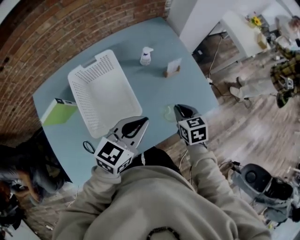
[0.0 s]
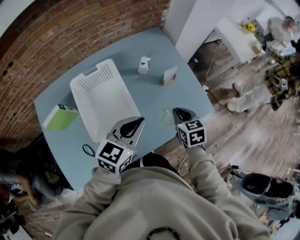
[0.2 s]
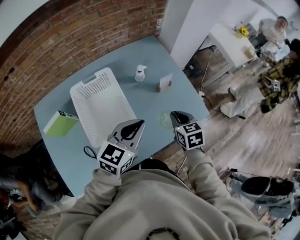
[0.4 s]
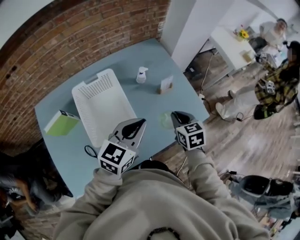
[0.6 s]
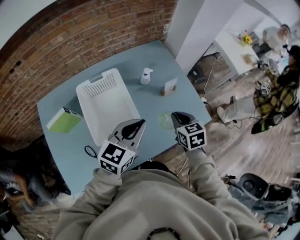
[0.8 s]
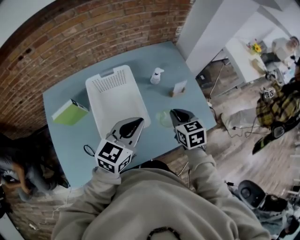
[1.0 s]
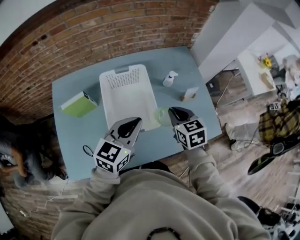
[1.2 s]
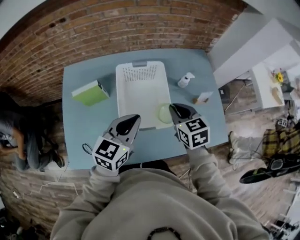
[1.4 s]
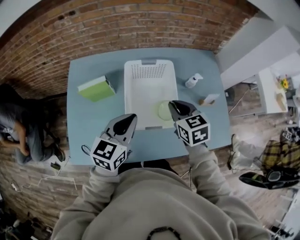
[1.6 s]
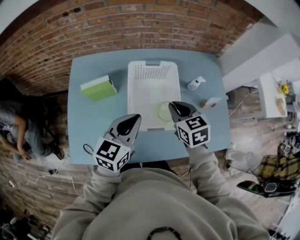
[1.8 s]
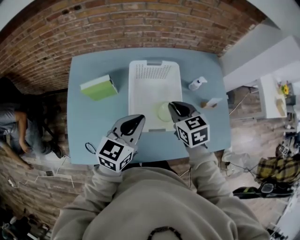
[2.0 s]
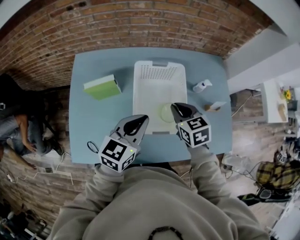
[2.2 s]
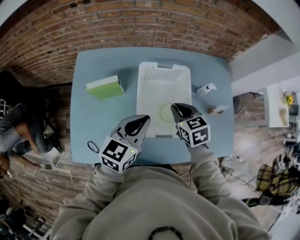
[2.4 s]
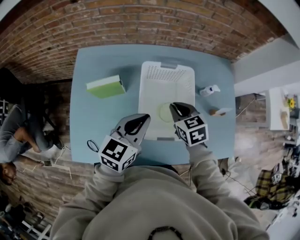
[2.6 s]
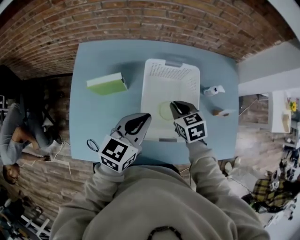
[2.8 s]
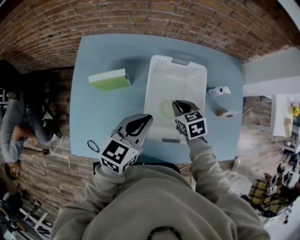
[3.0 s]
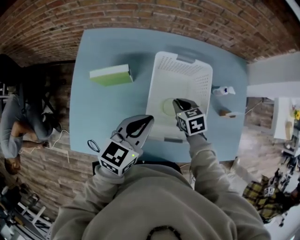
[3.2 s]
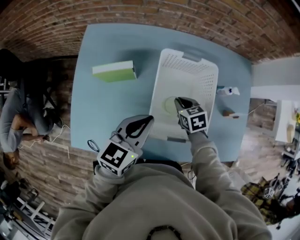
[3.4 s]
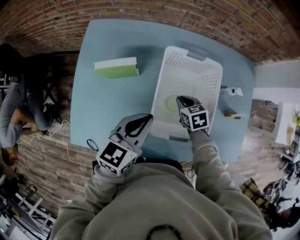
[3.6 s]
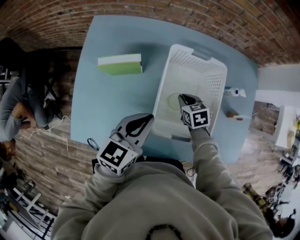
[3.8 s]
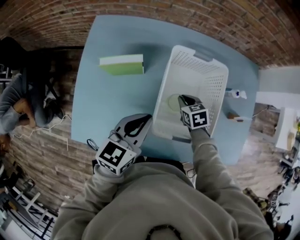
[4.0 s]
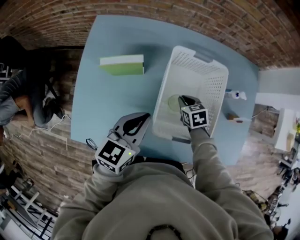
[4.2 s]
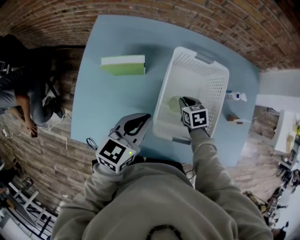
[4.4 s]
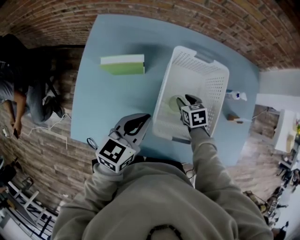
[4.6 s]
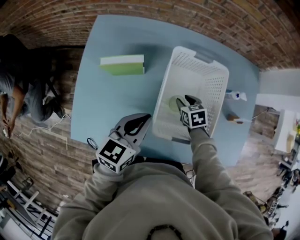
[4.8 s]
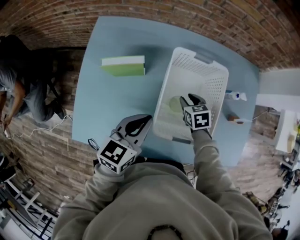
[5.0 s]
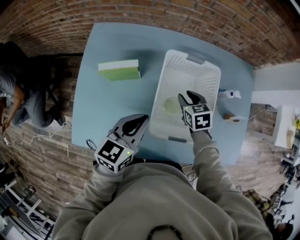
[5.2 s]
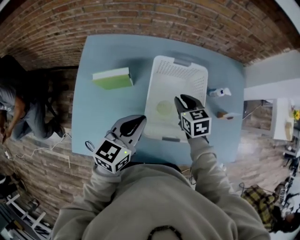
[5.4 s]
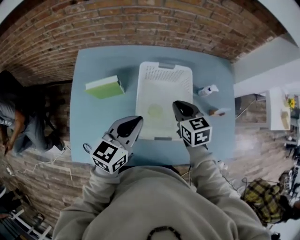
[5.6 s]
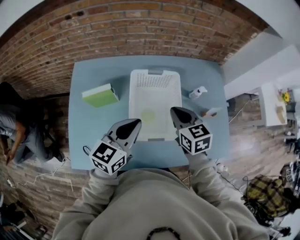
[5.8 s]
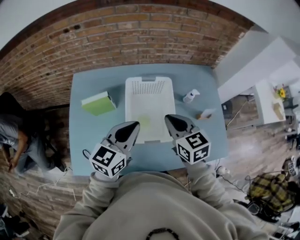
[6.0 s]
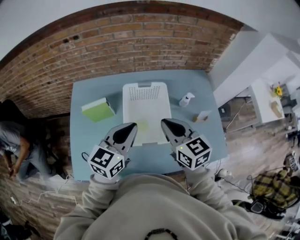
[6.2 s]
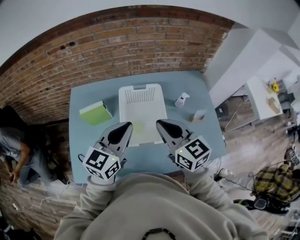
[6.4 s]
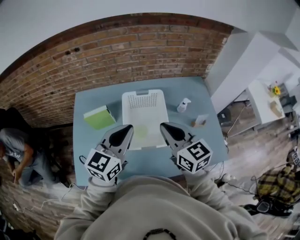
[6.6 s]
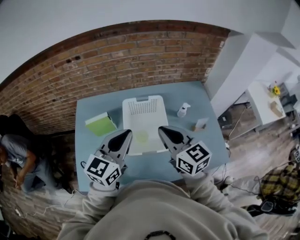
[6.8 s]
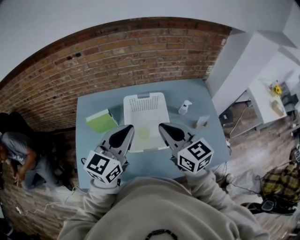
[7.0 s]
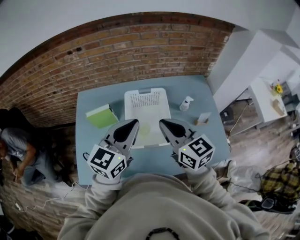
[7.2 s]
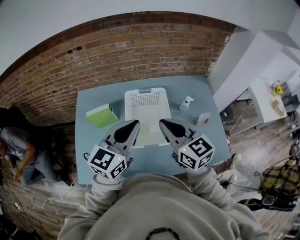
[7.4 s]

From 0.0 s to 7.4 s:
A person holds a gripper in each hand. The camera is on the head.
From 0.0 s to 1.4 s: The left gripper ends up some 15 cm from where it was, and turns by some 30 degrees, while the right gripper changes place by approximately 25 cm, and rotates approximately 30 degrees.
From 1.4 s to 3.0 s: The left gripper shifts about 10 cm to the left and downward; the right gripper goes some 20 cm downward, to the left and forward.
From 3.0 s to 4.4 s: The right gripper travels downward by about 10 cm. The left gripper moves to the left, some 5 cm.
From 4.4 s to 6.0 s: The right gripper heads upward, covering some 30 cm, tips its fingers upward by approximately 30 degrees, and opens and closes again; the left gripper heads upward and to the right, covering about 15 cm.
From 6.0 s to 7.4 s: Both grippers travel together upward, approximately 10 cm.

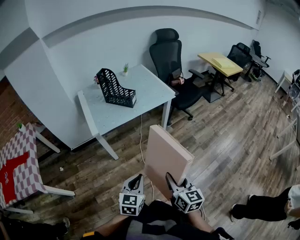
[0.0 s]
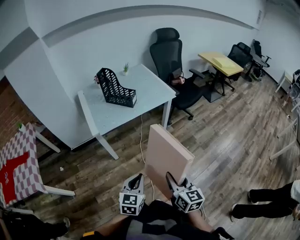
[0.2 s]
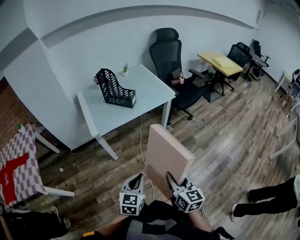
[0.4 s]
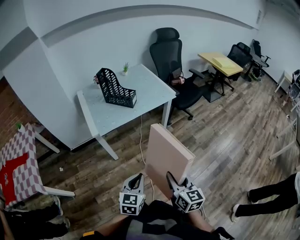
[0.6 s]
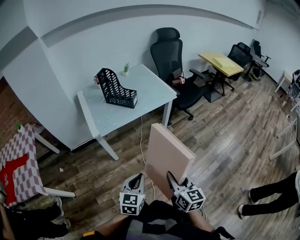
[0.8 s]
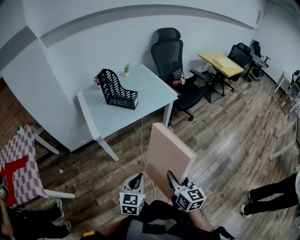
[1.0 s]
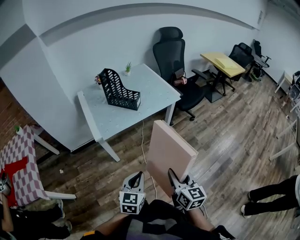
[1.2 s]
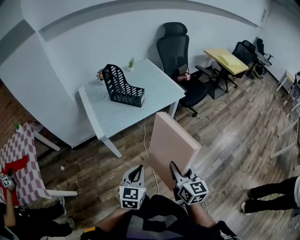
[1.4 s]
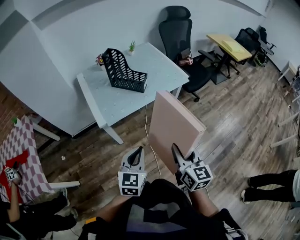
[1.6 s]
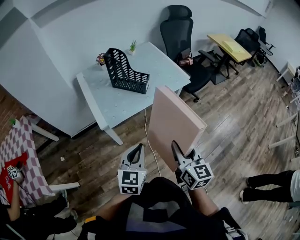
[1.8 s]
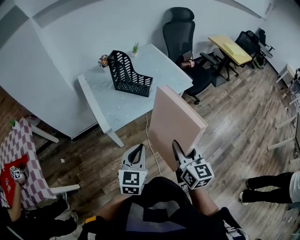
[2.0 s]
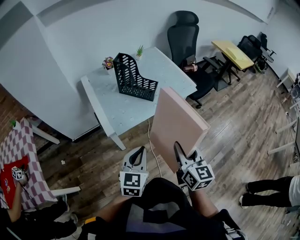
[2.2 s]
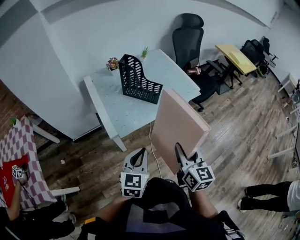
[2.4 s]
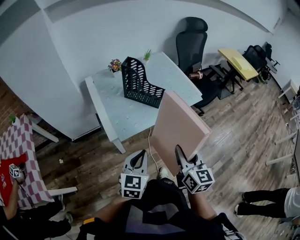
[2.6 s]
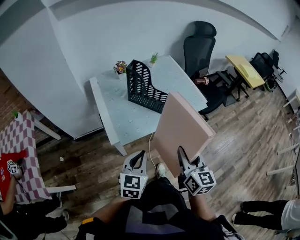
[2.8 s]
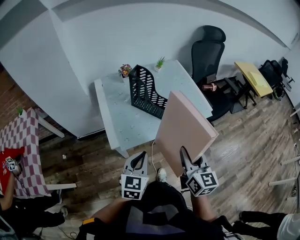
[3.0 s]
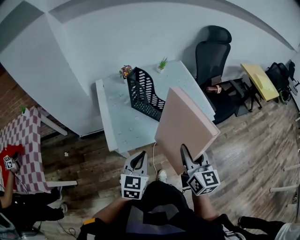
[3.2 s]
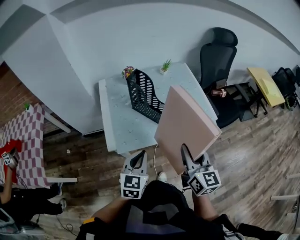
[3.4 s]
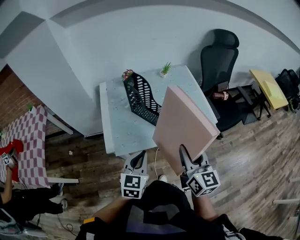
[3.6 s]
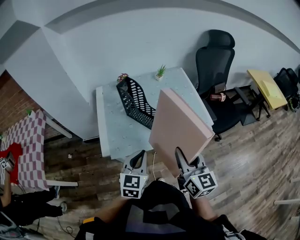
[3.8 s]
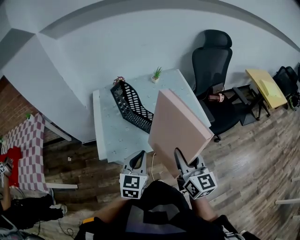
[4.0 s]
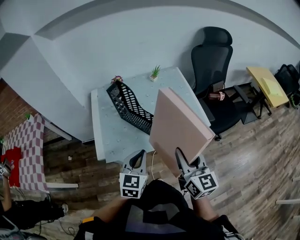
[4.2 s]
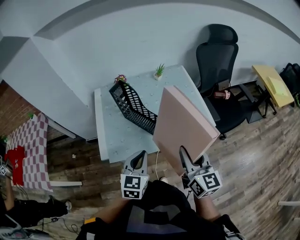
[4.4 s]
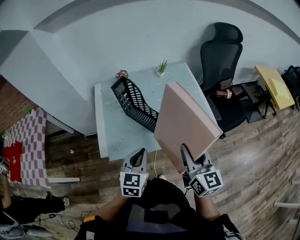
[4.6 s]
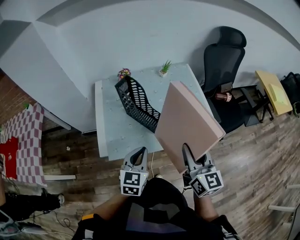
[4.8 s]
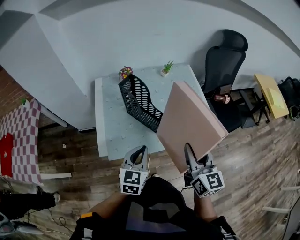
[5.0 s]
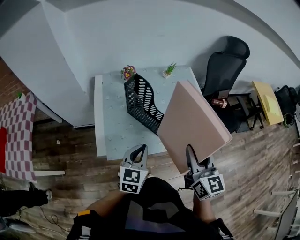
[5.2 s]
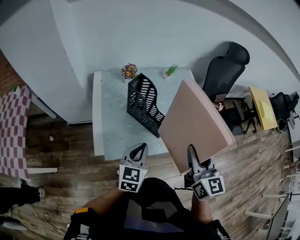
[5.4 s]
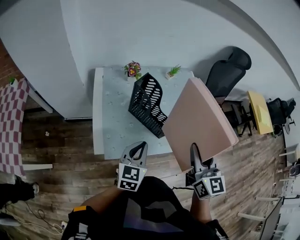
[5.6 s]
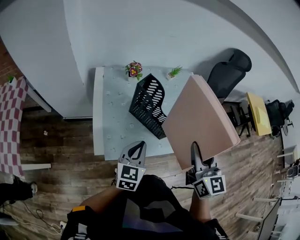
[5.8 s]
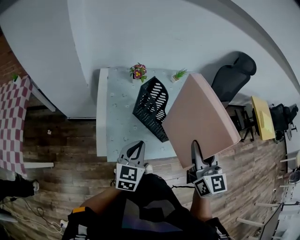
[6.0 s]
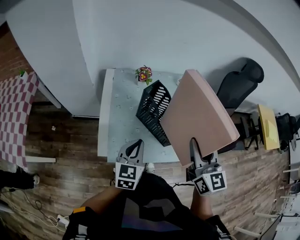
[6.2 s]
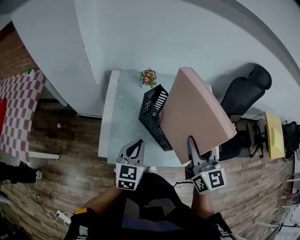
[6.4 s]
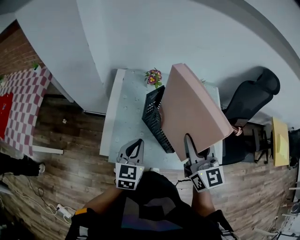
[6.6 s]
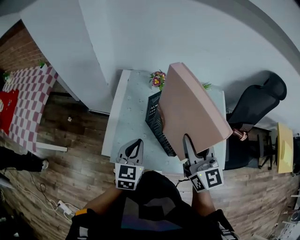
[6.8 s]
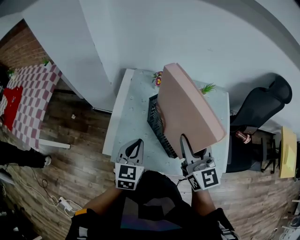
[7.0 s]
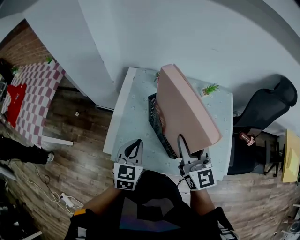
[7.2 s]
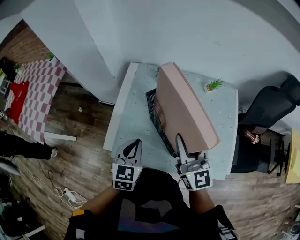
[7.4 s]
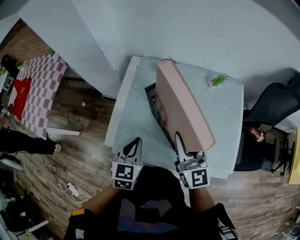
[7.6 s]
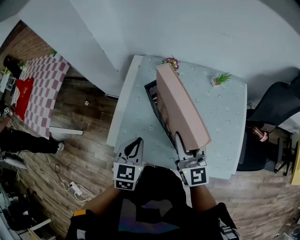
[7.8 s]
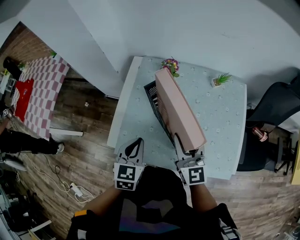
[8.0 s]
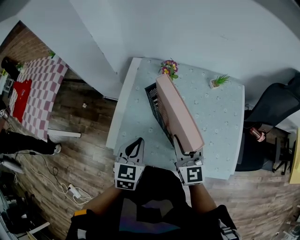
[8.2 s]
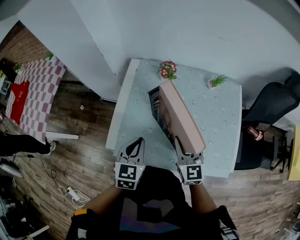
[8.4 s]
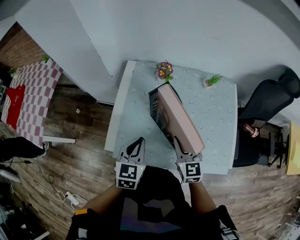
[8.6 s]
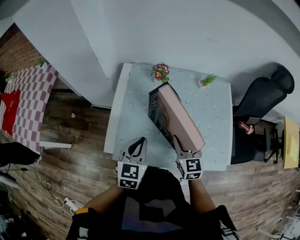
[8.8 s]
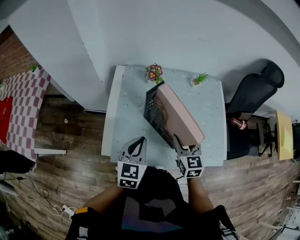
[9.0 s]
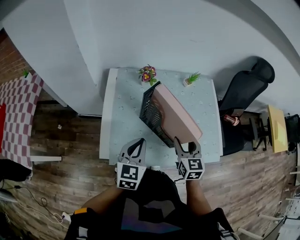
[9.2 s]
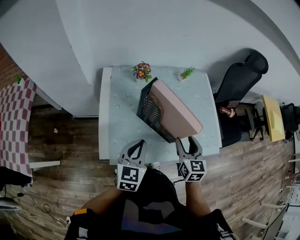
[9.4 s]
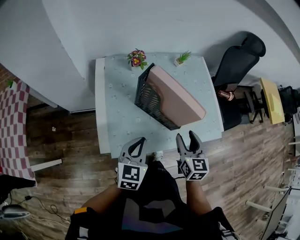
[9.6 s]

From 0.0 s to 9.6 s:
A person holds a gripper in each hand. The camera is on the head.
From 0.0 s to 1.6 s: Both grippers travel together forward and to the left, about 15 cm.
From 1.6 s to 3.2 s: Both grippers travel together forward, about 20 cm.
From 3.2 s to 4.8 s: Both grippers move forward and to the right, some 15 cm.
From 4.8 s to 6.4 s: Both grippers travel together forward and to the left, roughly 15 cm.
From 6.4 s to 8.0 s: The right gripper moves downward and forward, approximately 15 cm.
From 8.0 s to 9.6 s: The right gripper moves about 10 cm, and turns by roughly 40 degrees; the left gripper changes its angle by some 30 degrees.

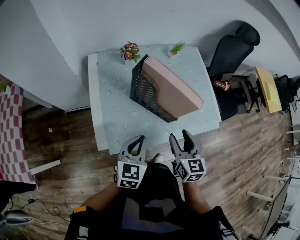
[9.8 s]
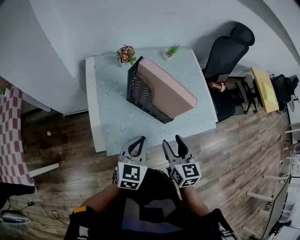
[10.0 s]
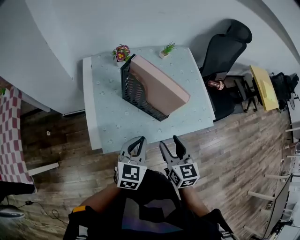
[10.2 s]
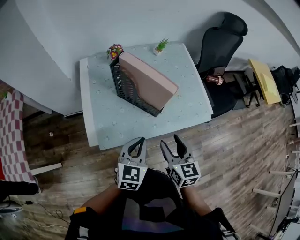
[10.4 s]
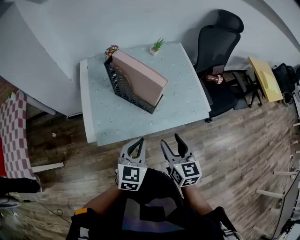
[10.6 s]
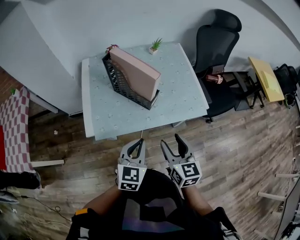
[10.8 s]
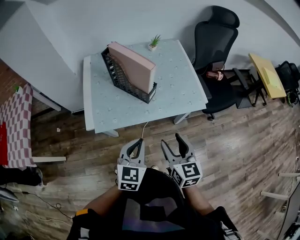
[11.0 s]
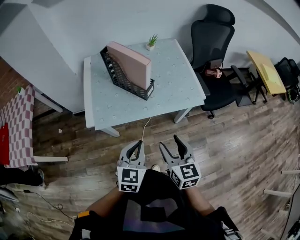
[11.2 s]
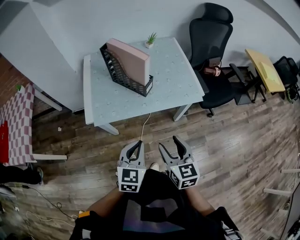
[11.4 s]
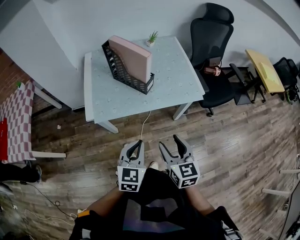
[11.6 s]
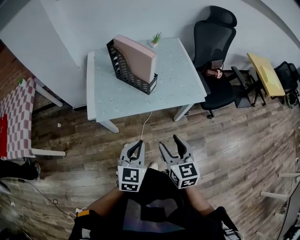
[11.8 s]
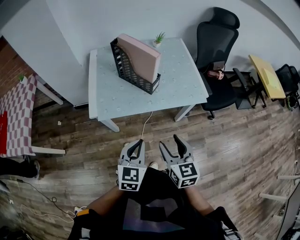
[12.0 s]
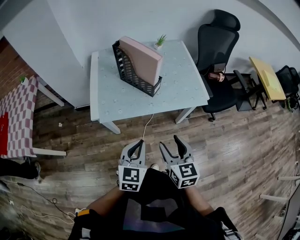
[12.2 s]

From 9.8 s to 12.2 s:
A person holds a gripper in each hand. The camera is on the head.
From 9.8 s to 11.0 s: The grippers both shift backward and to the right by roughly 20 cm.
From 11.0 s to 12.2 s: The two grippers go approximately 5 cm backward.

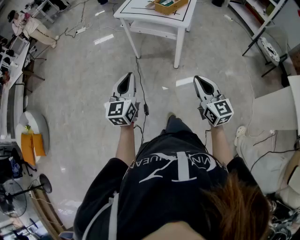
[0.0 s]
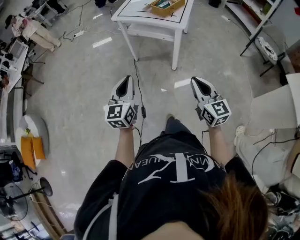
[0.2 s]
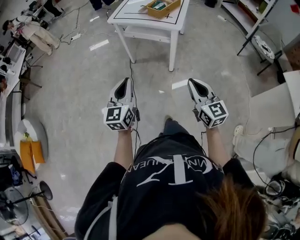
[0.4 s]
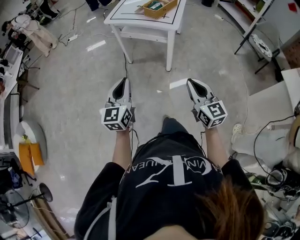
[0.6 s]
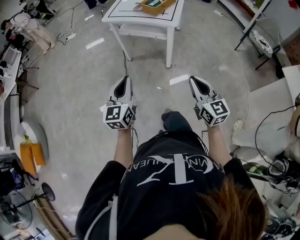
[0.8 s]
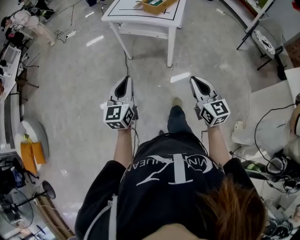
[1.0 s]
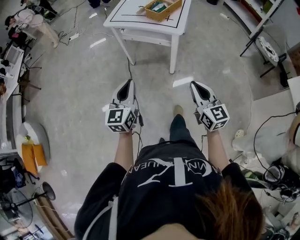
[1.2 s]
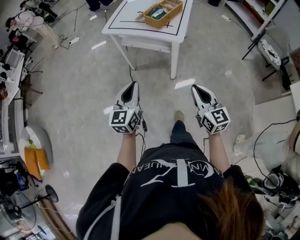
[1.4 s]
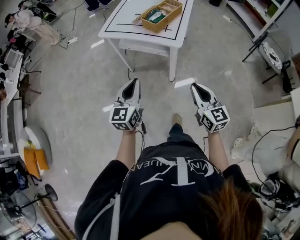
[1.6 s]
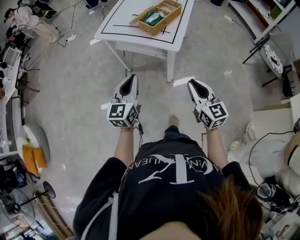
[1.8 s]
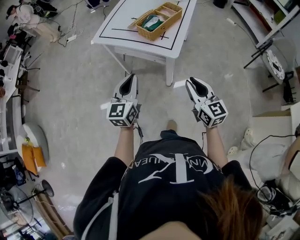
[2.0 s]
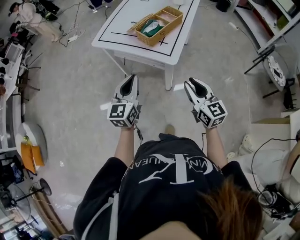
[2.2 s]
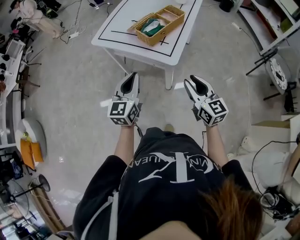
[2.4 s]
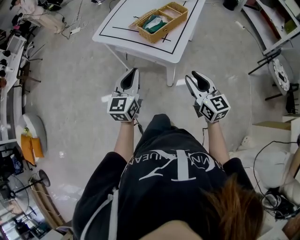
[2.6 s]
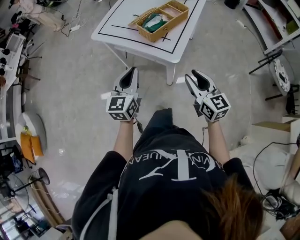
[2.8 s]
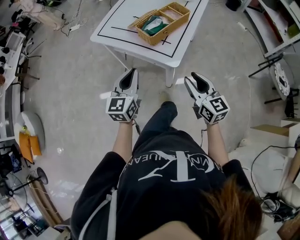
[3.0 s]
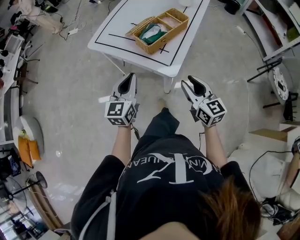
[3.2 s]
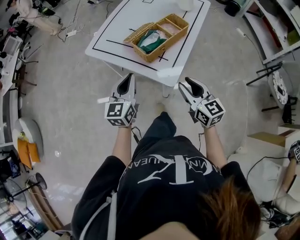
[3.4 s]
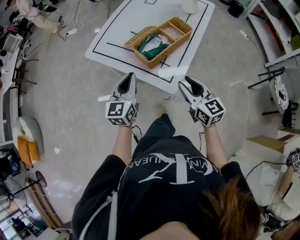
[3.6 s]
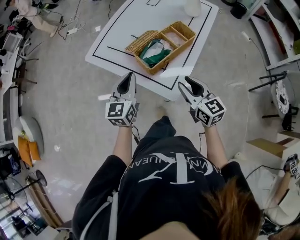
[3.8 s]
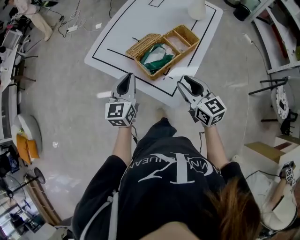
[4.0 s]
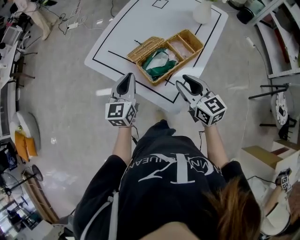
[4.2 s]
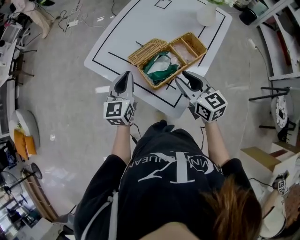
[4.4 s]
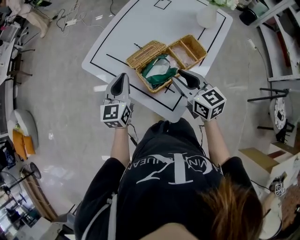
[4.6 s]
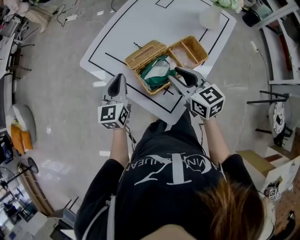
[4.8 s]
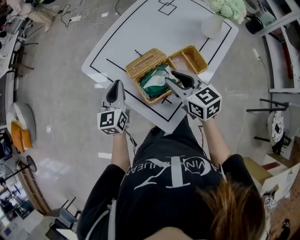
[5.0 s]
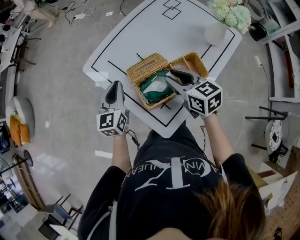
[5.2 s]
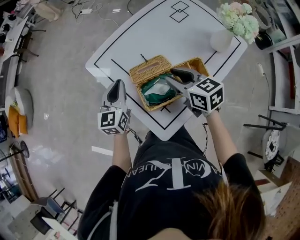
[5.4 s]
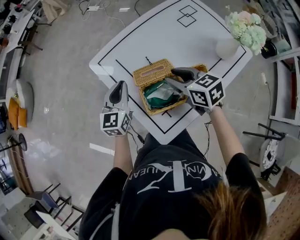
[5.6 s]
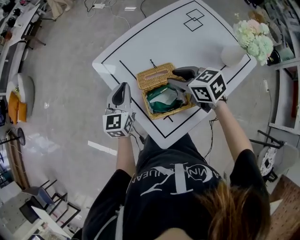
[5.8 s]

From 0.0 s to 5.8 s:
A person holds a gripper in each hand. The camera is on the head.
From 0.0 s to 1.4 s: The two grippers go roughly 15 cm forward and to the right.
From 1.4 s to 2.8 s: Both grippers travel together forward and to the right, roughly 25 cm. The right gripper opens its fingers.
From 2.8 s to 4.4 s: The grippers both shift forward by approximately 30 cm.
From 4.4 s to 5.8 s: The left gripper ends up some 5 cm from where it was, and turns by approximately 20 degrees, while the right gripper changes place by roughly 15 cm, and changes its angle by some 50 degrees.
